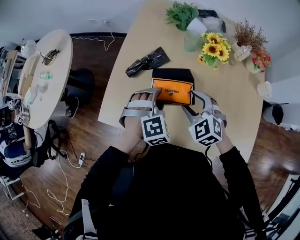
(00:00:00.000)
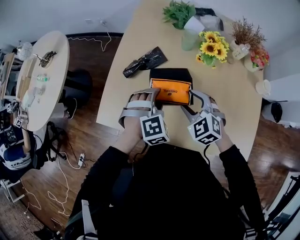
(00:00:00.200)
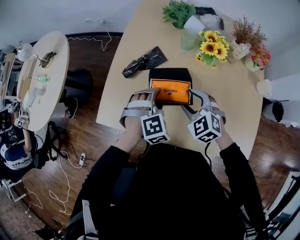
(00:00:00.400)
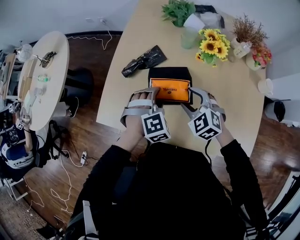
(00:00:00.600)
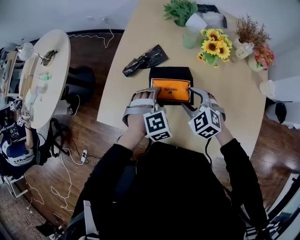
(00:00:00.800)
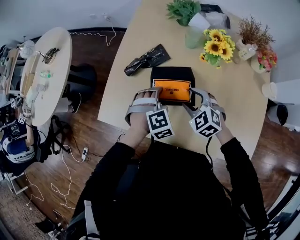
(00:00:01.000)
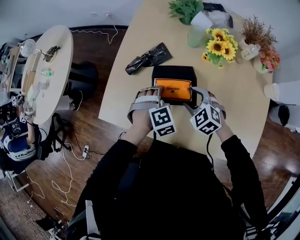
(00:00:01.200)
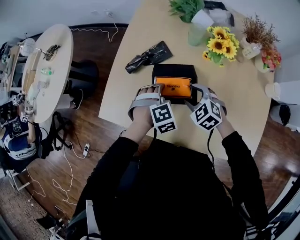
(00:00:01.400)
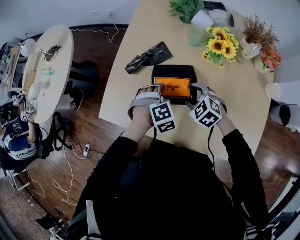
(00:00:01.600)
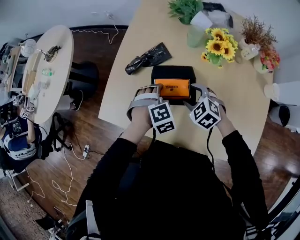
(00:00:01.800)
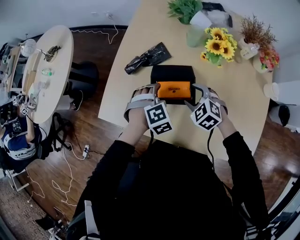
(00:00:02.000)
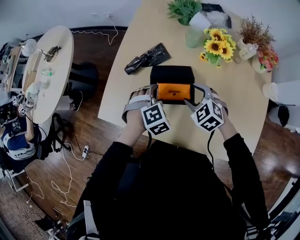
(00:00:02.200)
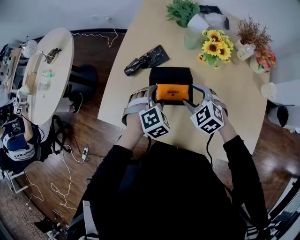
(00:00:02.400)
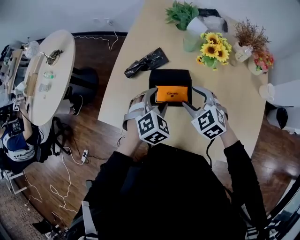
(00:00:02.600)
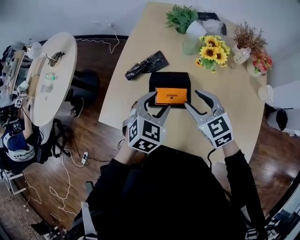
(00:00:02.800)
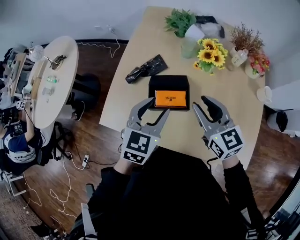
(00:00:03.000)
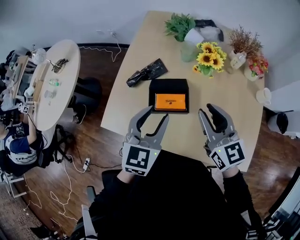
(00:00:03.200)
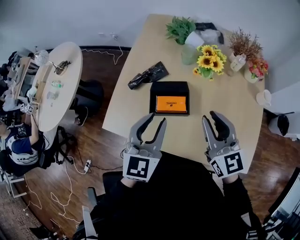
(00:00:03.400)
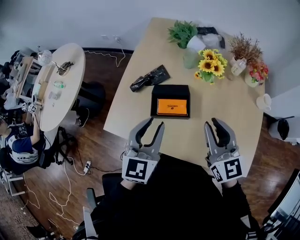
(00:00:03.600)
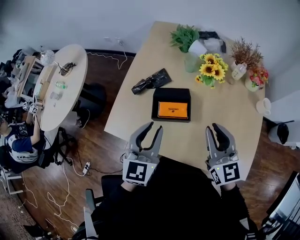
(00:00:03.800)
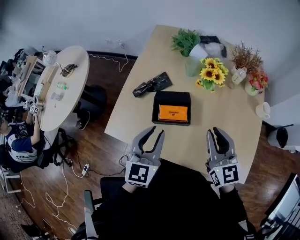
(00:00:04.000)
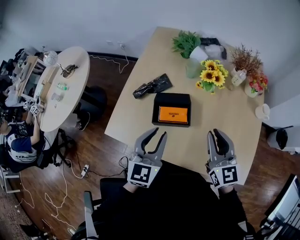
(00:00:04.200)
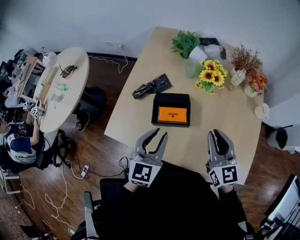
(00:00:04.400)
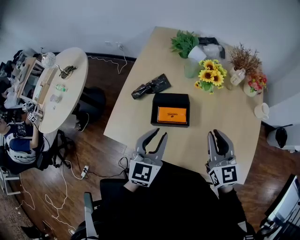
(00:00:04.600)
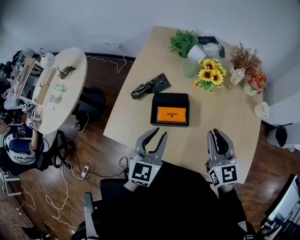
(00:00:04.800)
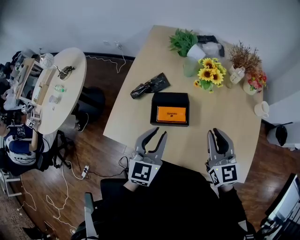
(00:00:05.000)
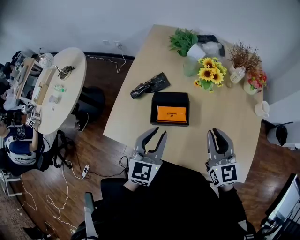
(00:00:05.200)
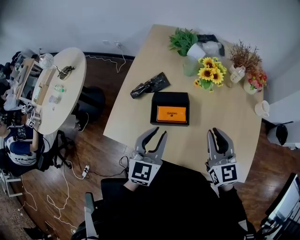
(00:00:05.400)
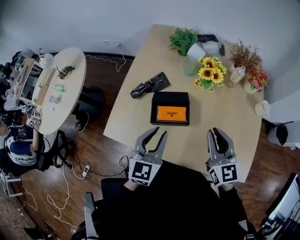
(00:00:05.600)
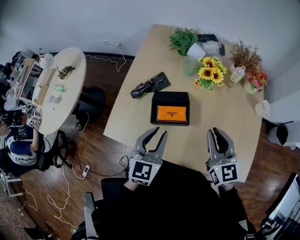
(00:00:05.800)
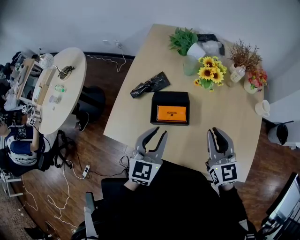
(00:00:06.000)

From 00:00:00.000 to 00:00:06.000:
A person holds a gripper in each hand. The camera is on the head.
From 00:00:00.000 to 00:00:01.600: The grippers both shift downward by about 10 cm.
From 00:00:01.600 to 00:00:03.000: Both grippers travel together upward, some 20 cm. The right gripper tilts its fingers approximately 40 degrees upward, and closes up, while the left gripper points its fingers approximately 40 degrees further upward.
From 00:00:03.000 to 00:00:04.400: The left gripper goes roughly 5 cm backward; the right gripper is displaced backward and to the right by roughly 10 cm.
From 00:00:04.400 to 00:00:06.000: Both grippers stay about where they are.

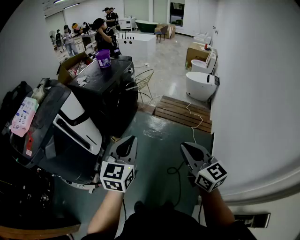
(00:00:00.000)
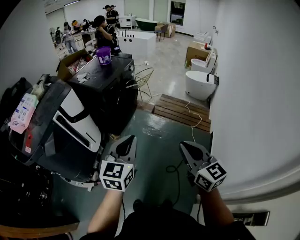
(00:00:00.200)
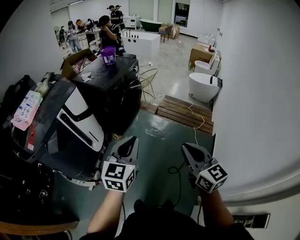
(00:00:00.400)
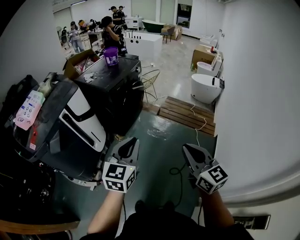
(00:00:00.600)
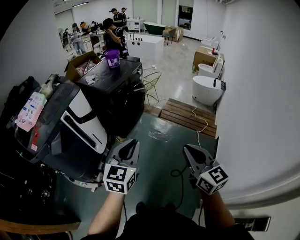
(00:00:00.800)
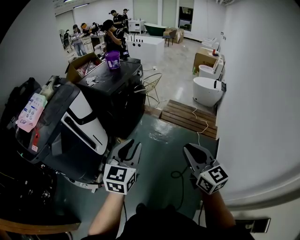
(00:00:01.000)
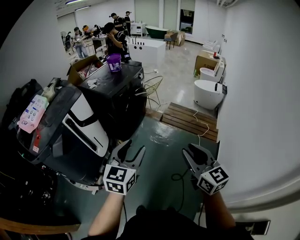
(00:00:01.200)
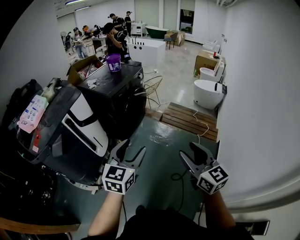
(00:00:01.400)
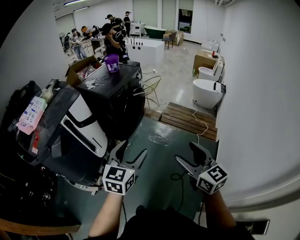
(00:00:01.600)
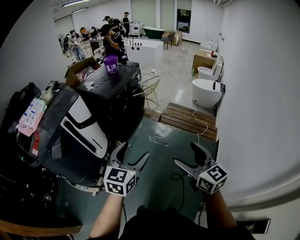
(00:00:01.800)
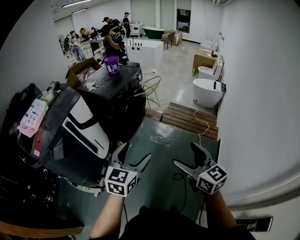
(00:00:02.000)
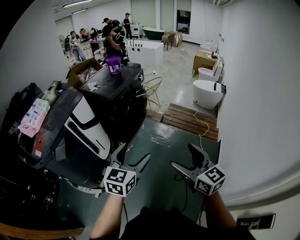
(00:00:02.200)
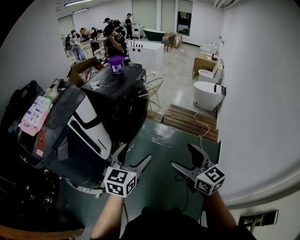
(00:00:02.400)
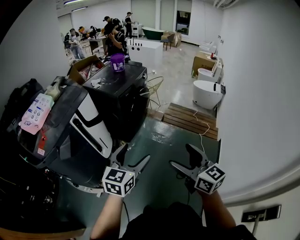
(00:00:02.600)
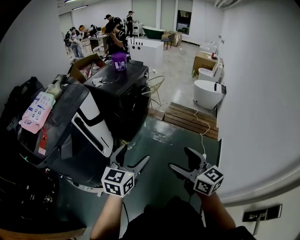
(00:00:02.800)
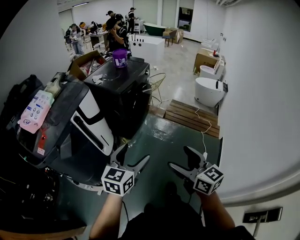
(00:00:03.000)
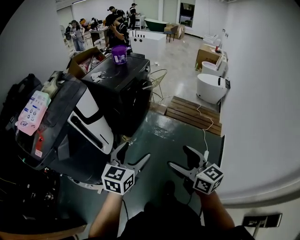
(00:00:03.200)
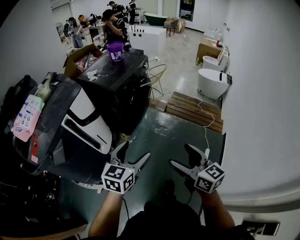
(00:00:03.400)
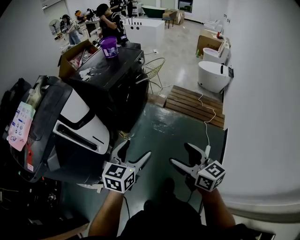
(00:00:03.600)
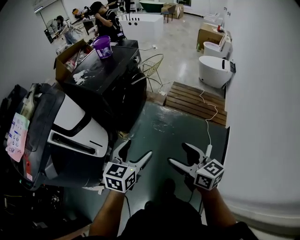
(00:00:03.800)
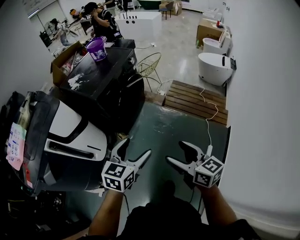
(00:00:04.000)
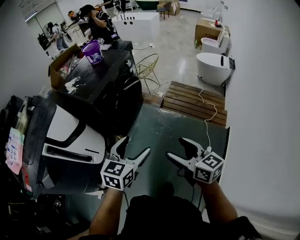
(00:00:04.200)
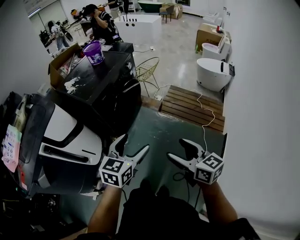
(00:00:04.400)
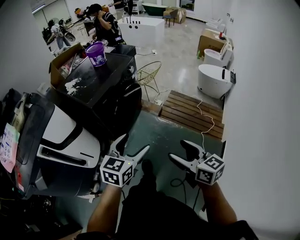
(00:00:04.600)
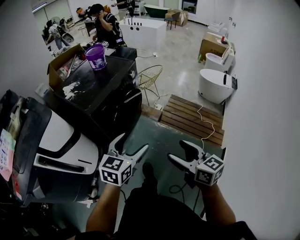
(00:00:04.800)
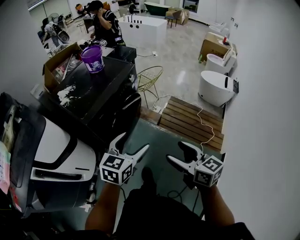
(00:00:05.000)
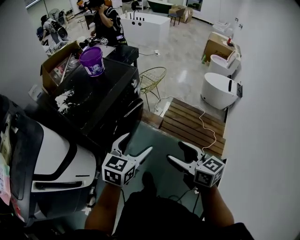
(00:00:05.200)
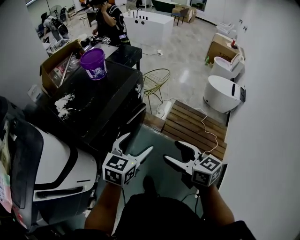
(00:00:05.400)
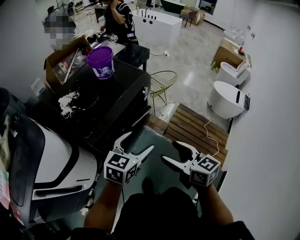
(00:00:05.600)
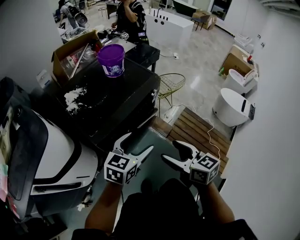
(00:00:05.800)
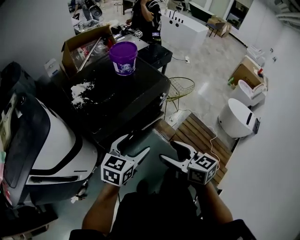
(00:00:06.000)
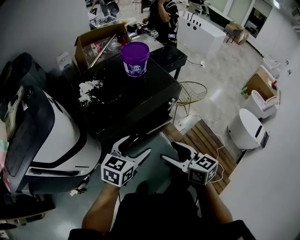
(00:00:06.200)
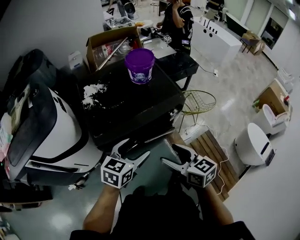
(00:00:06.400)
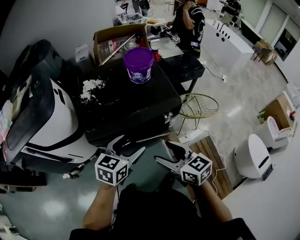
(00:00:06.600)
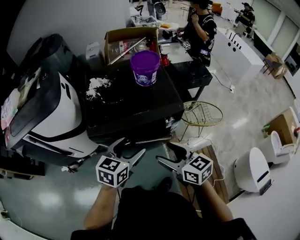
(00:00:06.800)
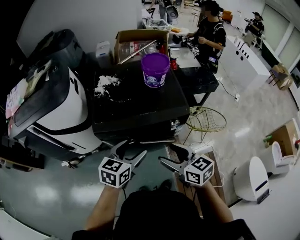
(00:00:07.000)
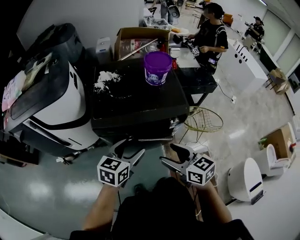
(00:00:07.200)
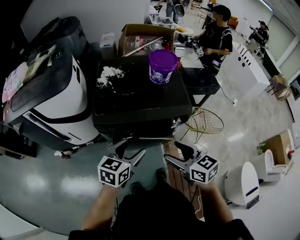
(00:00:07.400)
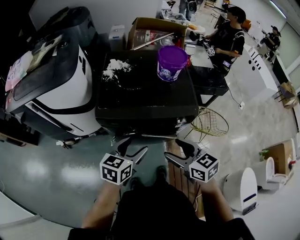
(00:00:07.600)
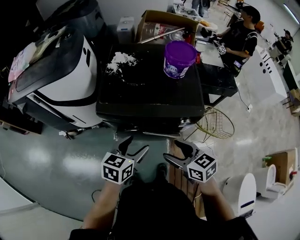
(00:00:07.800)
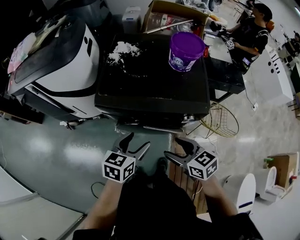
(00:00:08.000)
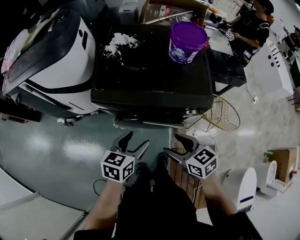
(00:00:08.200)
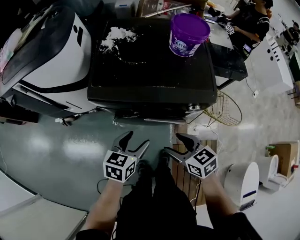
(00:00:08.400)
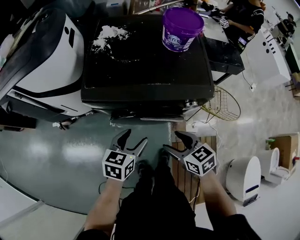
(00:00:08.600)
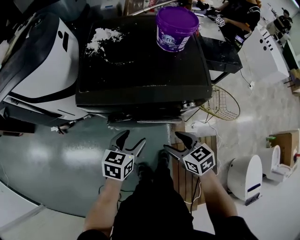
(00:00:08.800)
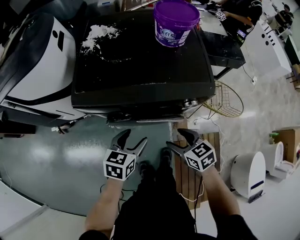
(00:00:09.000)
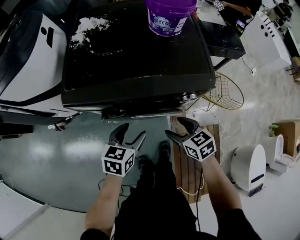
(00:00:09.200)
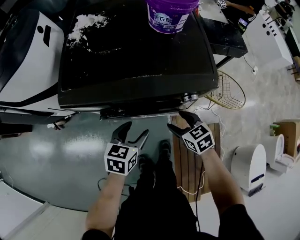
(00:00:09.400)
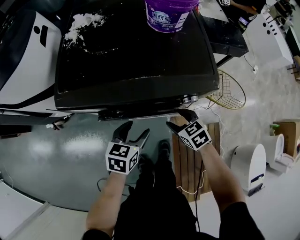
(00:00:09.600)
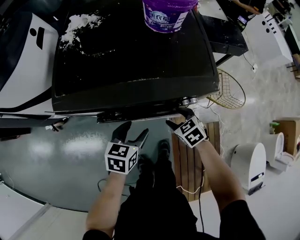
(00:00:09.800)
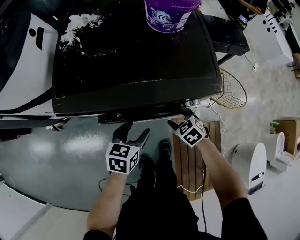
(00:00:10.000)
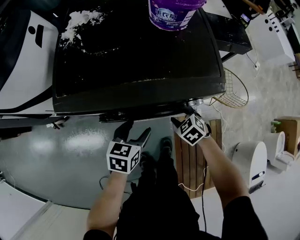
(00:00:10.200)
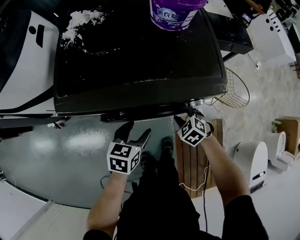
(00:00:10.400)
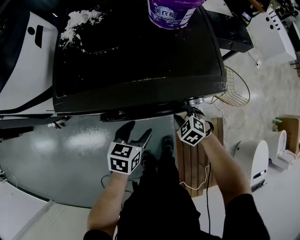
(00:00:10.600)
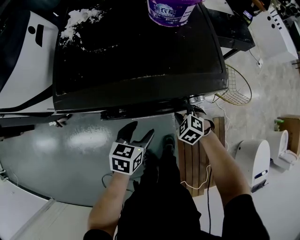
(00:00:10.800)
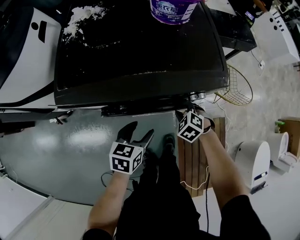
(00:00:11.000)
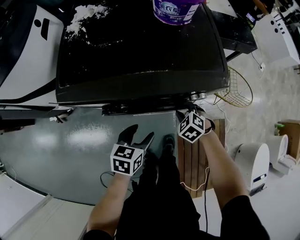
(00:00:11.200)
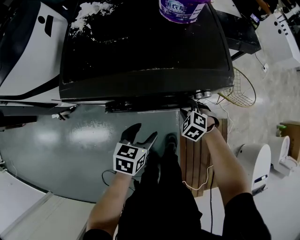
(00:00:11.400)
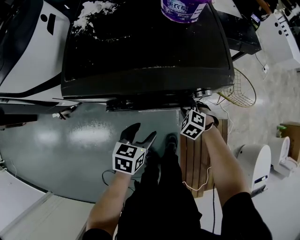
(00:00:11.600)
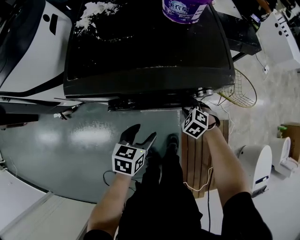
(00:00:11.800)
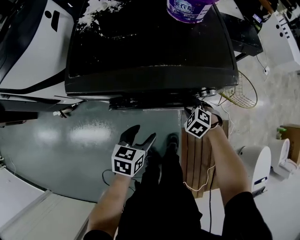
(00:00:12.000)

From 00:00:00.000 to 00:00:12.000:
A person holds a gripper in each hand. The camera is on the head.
From 00:00:00.000 to 00:00:01.600: The left gripper opens up; the right gripper opens up.
From 00:00:01.600 to 00:00:03.000: The two grippers go roughly 15 cm to the left.
From 00:00:03.000 to 00:00:04.400: The grippers both shift forward and to the right by some 30 cm.
From 00:00:04.400 to 00:00:06.000: Both grippers travel together forward, approximately 40 cm. The right gripper swivels roughly 30 degrees.
From 00:00:06.000 to 00:00:07.600: The right gripper ends up roughly 15 cm from where it was, and swivels some 40 degrees. The left gripper changes place by about 10 cm, and swivels some 40 degrees.
From 00:00:07.600 to 00:00:09.000: The two grippers go about 20 cm downward.
From 00:00:09.000 to 00:00:10.400: The right gripper heads downward and forward, covering approximately 15 cm, turns by some 40 degrees, and closes; the left gripper travels downward by roughly 5 cm.
From 00:00:10.400 to 00:00:12.000: The left gripper goes approximately 5 cm backward.

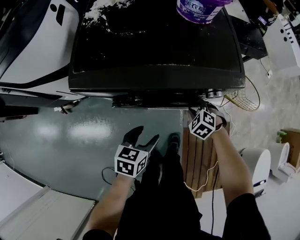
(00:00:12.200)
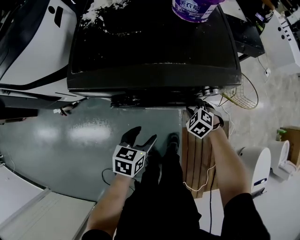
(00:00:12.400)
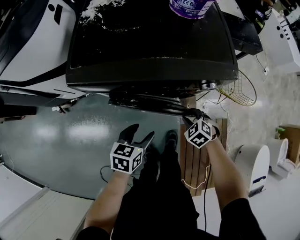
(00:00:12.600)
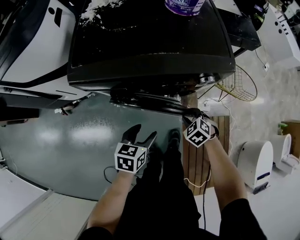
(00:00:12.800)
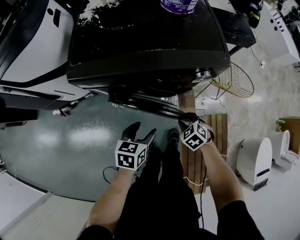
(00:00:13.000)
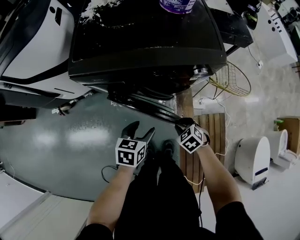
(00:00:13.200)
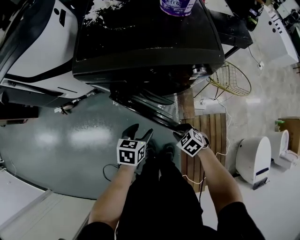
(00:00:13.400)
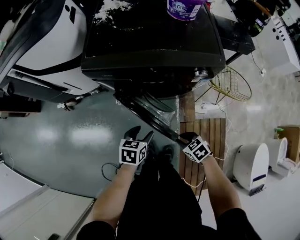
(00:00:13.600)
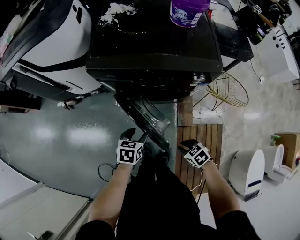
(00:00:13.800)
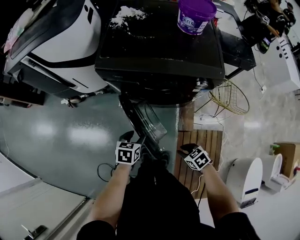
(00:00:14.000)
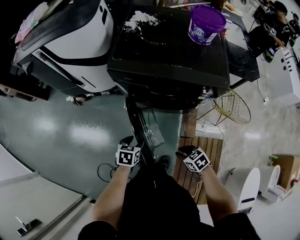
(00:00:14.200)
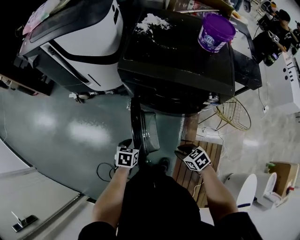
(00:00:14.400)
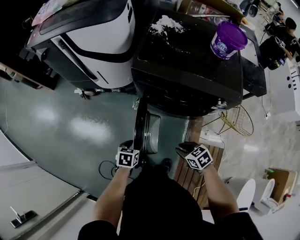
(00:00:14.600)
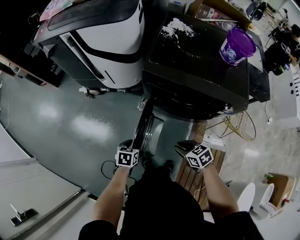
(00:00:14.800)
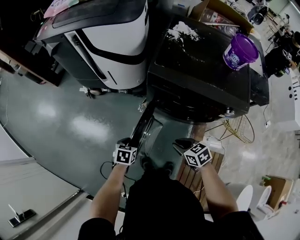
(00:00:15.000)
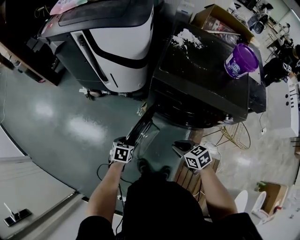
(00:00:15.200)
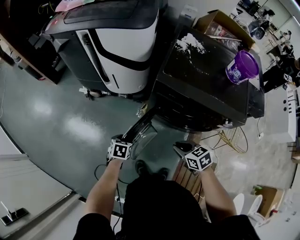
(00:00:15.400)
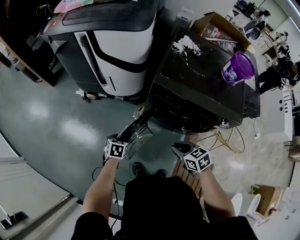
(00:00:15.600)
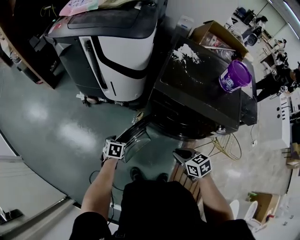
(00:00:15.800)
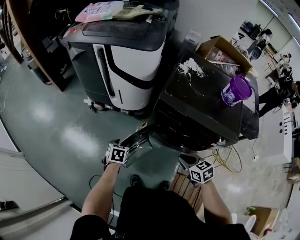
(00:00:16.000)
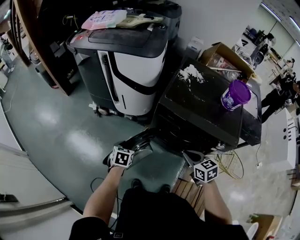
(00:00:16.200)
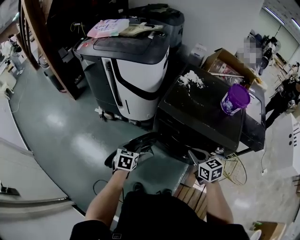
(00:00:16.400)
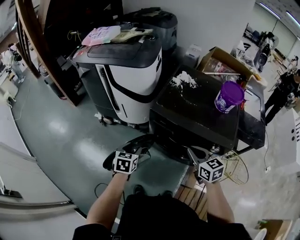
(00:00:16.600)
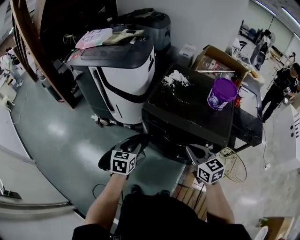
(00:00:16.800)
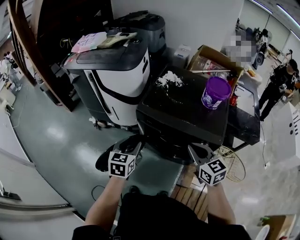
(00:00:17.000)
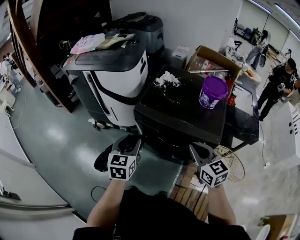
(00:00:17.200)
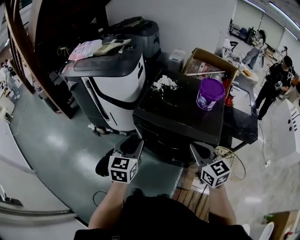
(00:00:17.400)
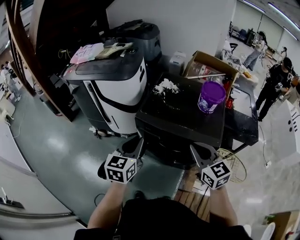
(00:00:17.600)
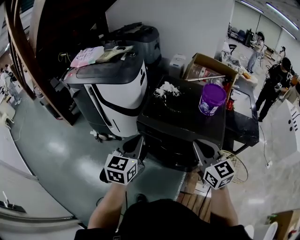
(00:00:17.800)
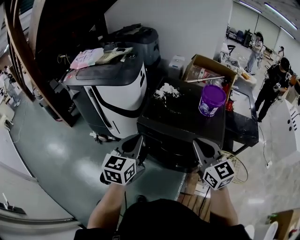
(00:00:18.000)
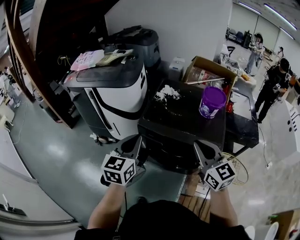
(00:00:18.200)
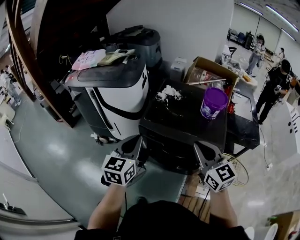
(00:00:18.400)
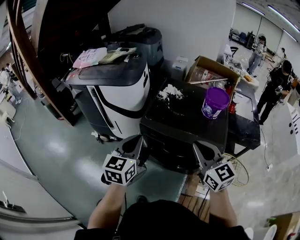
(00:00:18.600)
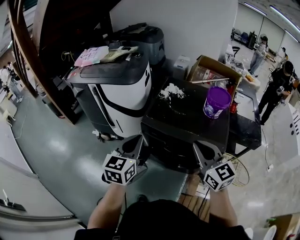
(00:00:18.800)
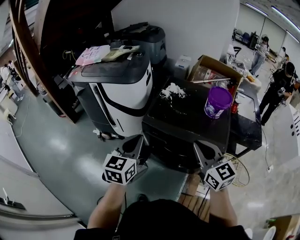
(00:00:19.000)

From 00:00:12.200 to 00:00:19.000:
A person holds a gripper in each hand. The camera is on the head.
From 00:00:12.200 to 00:00:13.600: The right gripper moves approximately 25 cm, and swivels roughly 40 degrees, while the left gripper ends up approximately 10 cm from where it was.
From 00:00:13.600 to 00:00:15.000: The right gripper shifts some 20 cm to the left, upward and forward; the left gripper heads to the left, covering approximately 20 cm.
From 00:00:15.000 to 00:00:16.200: The right gripper is displaced upward, forward and to the right by about 15 cm. Meanwhile the left gripper moves upward and forward, about 10 cm.
From 00:00:16.200 to 00:00:17.600: The right gripper is displaced upward and to the right by some 25 cm, and rotates about 30 degrees, while the left gripper travels upward and to the right by approximately 35 cm, tips its fingers upward by some 40 degrees, and closes.
From 00:00:17.600 to 00:00:19.000: The right gripper moves some 5 cm.
